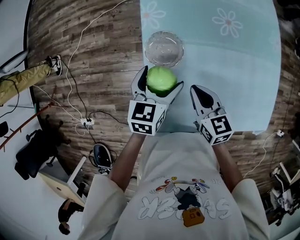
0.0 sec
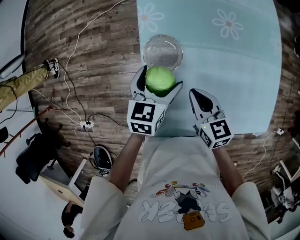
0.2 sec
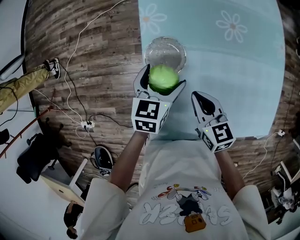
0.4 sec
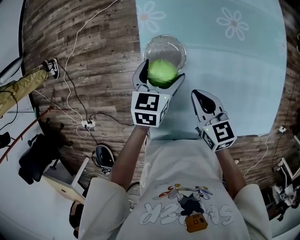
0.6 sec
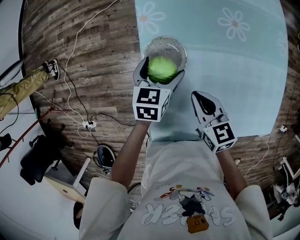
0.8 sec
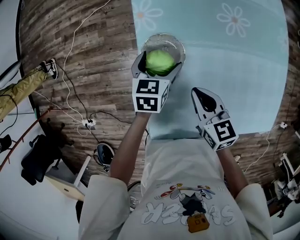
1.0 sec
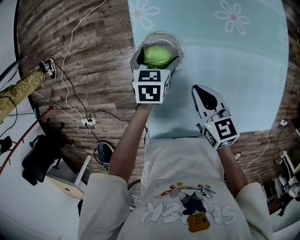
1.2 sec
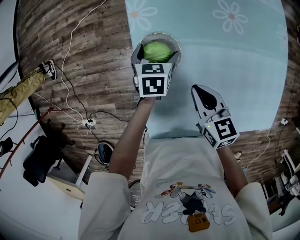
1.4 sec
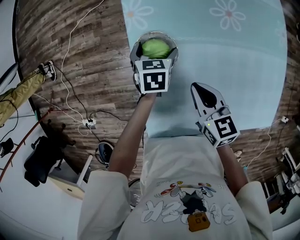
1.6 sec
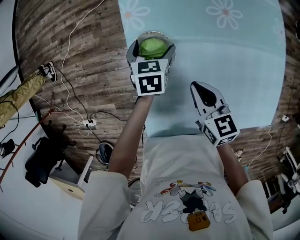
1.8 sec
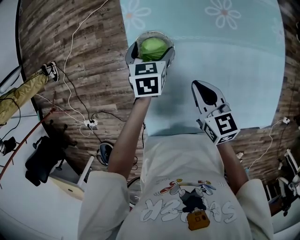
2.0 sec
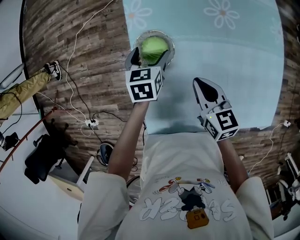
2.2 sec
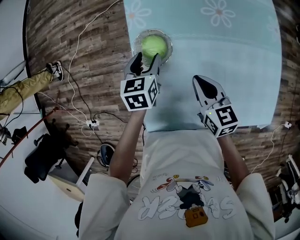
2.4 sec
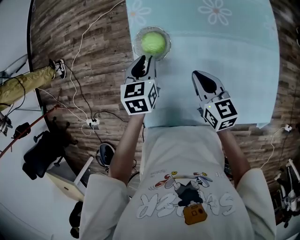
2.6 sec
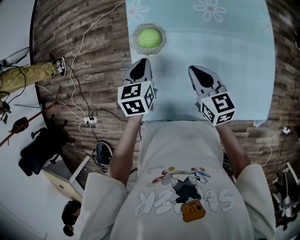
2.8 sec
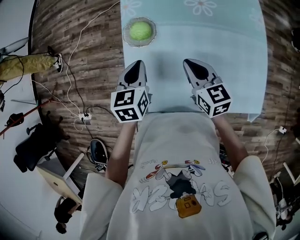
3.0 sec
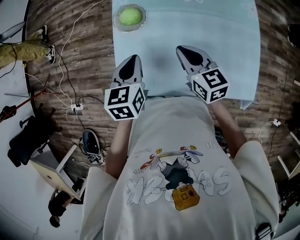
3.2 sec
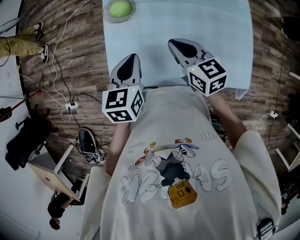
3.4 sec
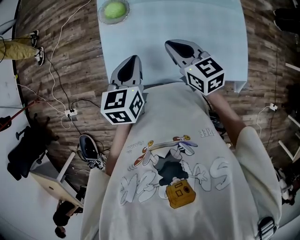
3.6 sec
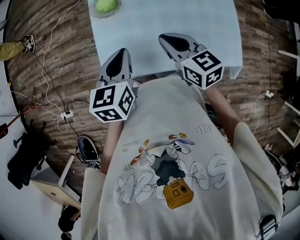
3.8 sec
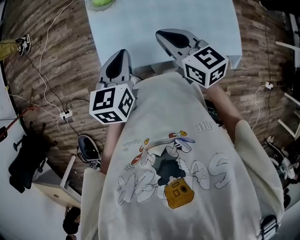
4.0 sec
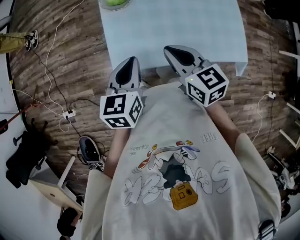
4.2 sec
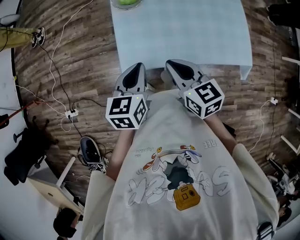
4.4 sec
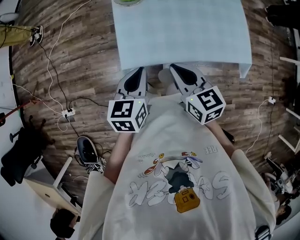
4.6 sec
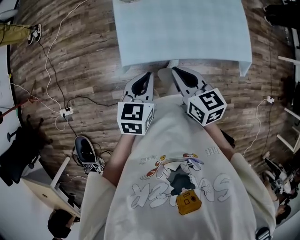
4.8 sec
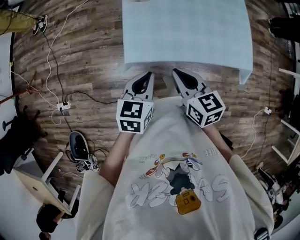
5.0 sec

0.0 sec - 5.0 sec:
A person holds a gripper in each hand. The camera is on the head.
0.0 sec - 1.6 sec: The left gripper shifts roughly 20 cm downward and forward, while the right gripper shifts by roughly 5 cm.
1.6 sec - 3.4 sec: The left gripper shifts approximately 35 cm backward and upward, rotates approximately 20 degrees, and closes its fingers; the right gripper is displaced backward, upward and to the right by some 20 cm.
3.4 sec - 5.0 sec: The left gripper goes about 20 cm backward. Meanwhile the right gripper heads backward and to the left, covering some 30 cm.

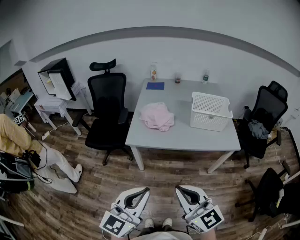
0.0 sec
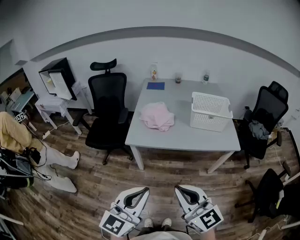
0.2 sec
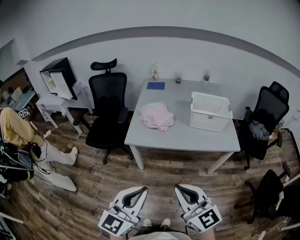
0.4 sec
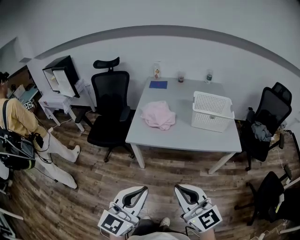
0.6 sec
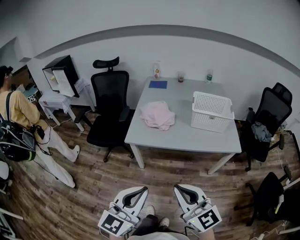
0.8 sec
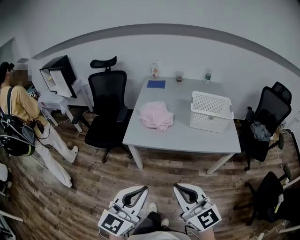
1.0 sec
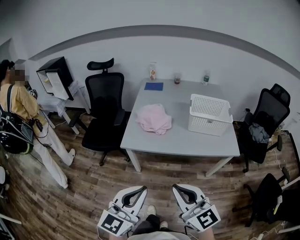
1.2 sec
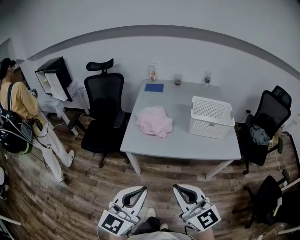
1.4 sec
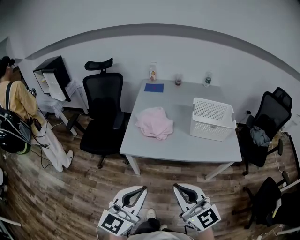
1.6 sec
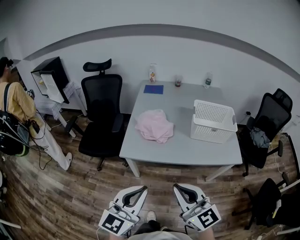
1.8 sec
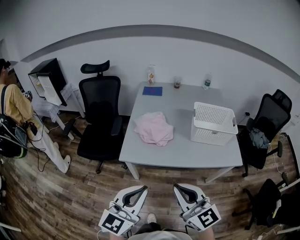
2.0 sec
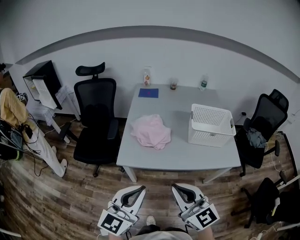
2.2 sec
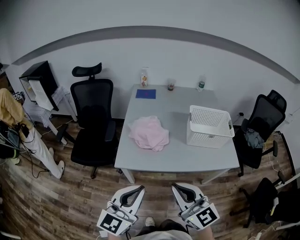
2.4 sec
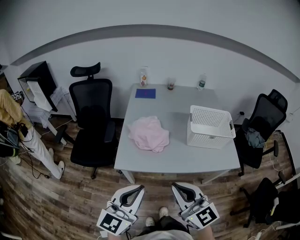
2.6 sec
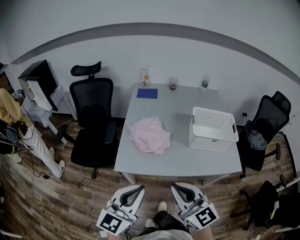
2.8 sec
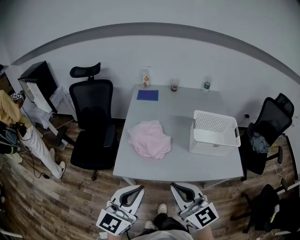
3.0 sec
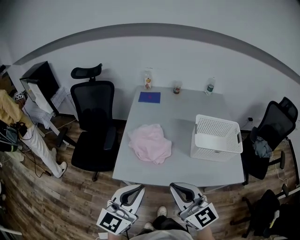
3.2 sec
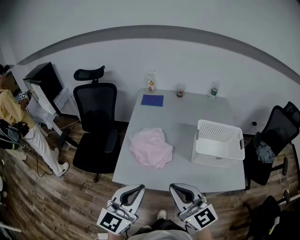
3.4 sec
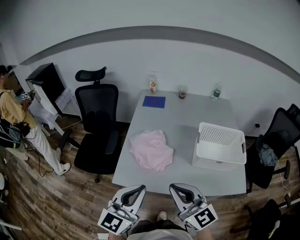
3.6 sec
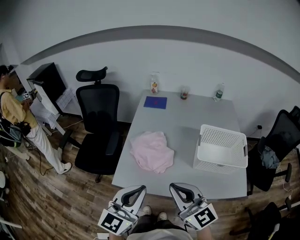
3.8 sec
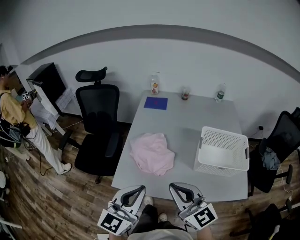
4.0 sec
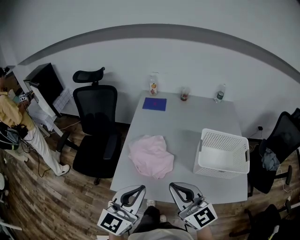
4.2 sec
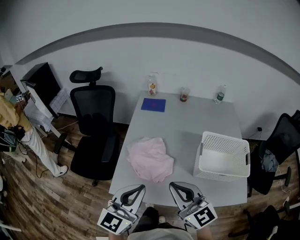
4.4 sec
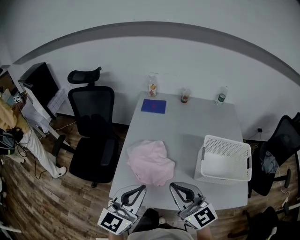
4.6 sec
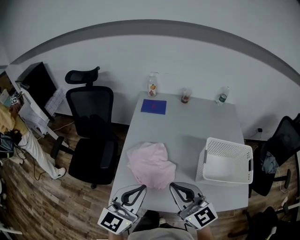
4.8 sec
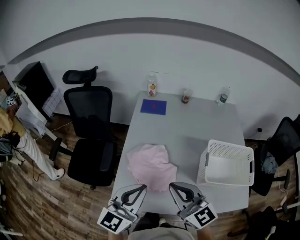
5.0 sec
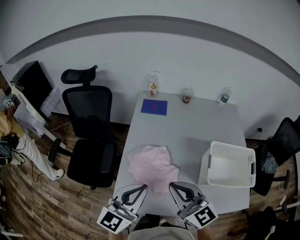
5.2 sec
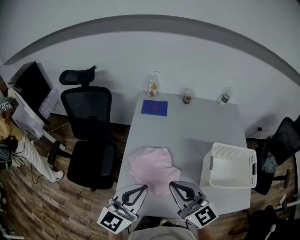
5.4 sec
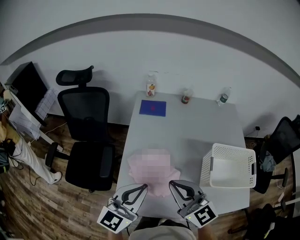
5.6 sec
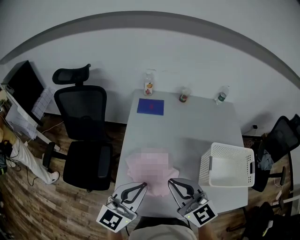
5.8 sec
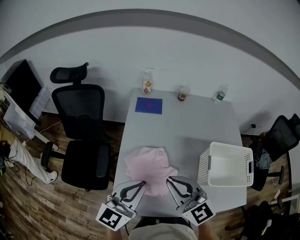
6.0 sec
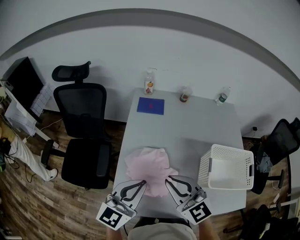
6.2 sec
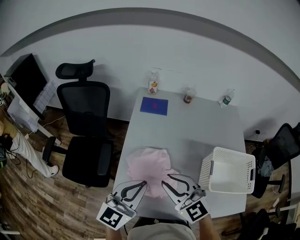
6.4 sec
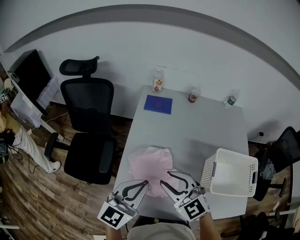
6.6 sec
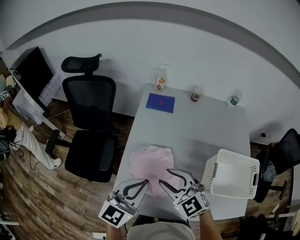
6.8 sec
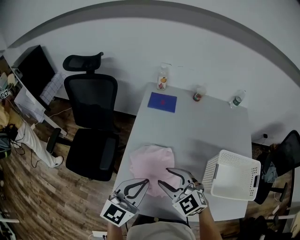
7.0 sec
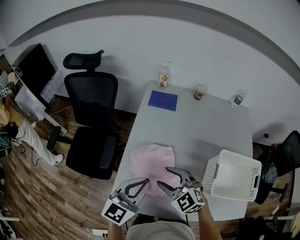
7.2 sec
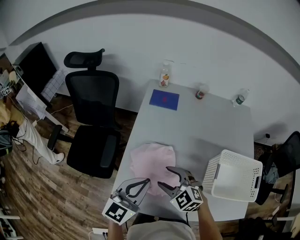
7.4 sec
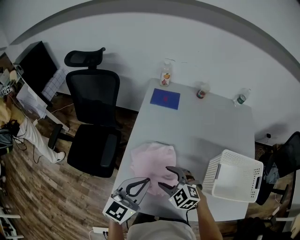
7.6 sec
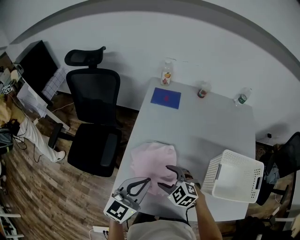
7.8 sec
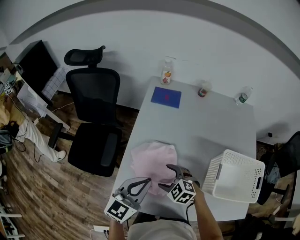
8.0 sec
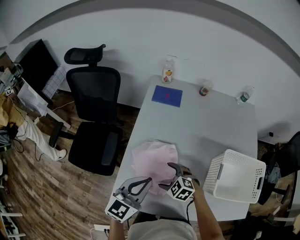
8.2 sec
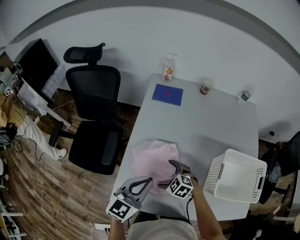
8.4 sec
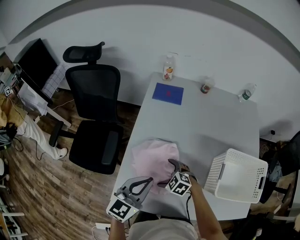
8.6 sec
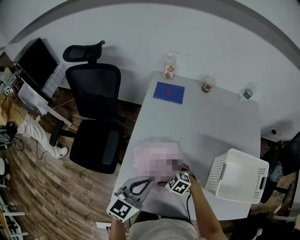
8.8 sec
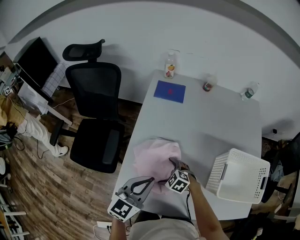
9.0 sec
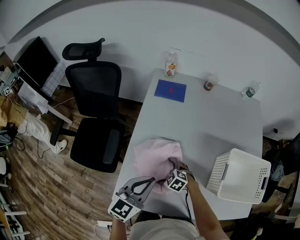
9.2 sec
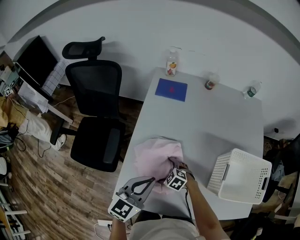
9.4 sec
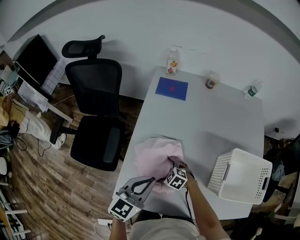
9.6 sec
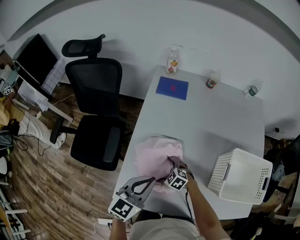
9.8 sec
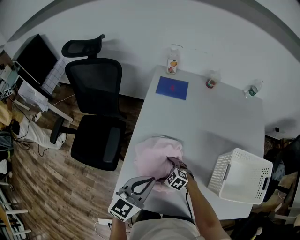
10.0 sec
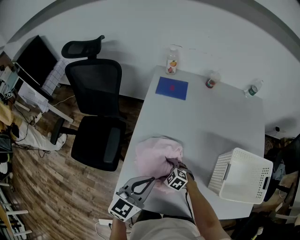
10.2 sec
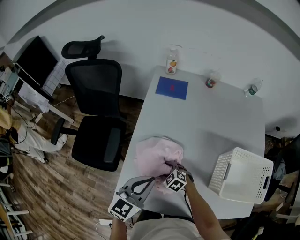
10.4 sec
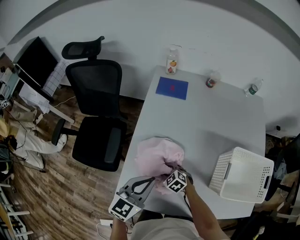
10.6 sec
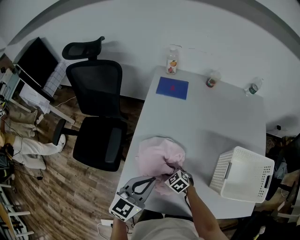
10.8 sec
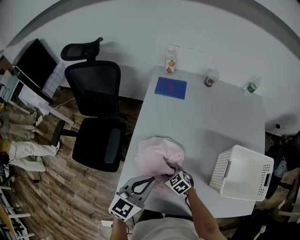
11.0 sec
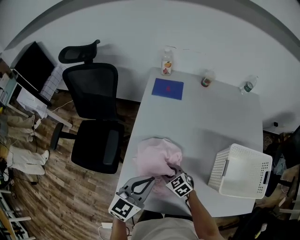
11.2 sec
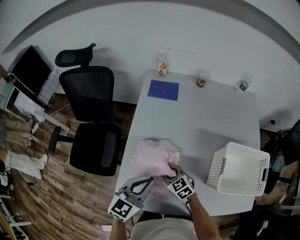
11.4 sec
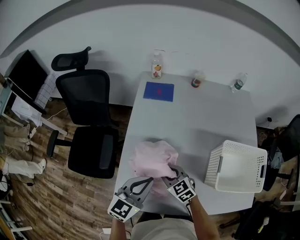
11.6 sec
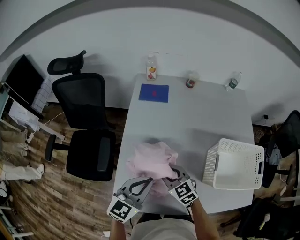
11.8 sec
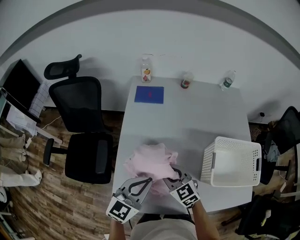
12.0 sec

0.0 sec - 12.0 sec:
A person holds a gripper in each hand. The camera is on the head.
0.0 sec - 1.6 sec: The two grippers go roughly 10 cm forward.
1.6 sec - 3.0 sec: The two grippers go some 20 cm forward.
3.0 sec - 4.4 sec: The grippers both shift forward by some 15 cm.
4.4 sec - 6.0 sec: The left gripper travels forward by approximately 15 cm. The right gripper moves forward and to the left, roughly 15 cm.
6.0 sec - 7.6 sec: The left gripper goes about 5 cm downward, while the right gripper heads downward, covering approximately 20 cm, tilts its fingers approximately 30 degrees downward, and opens its fingers.
7.6 sec - 9.0 sec: The right gripper is displaced downward by some 15 cm, turns by some 20 degrees, and opens its fingers.
9.0 sec - 10.4 sec: The right gripper closes.
10.4 sec - 12.0 sec: The left gripper shifts by some 5 cm. Meanwhile the right gripper is displaced upward by some 20 cm, and rotates about 40 degrees.

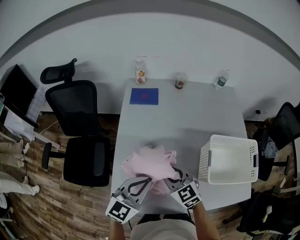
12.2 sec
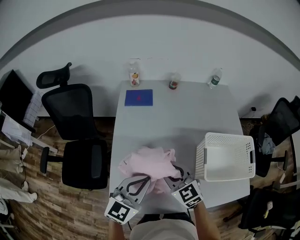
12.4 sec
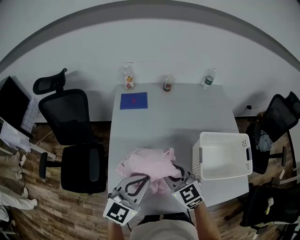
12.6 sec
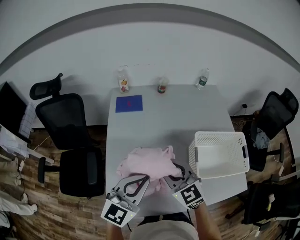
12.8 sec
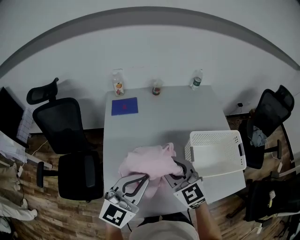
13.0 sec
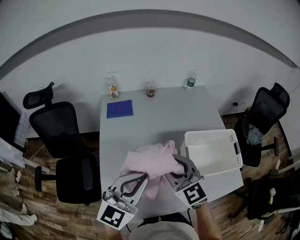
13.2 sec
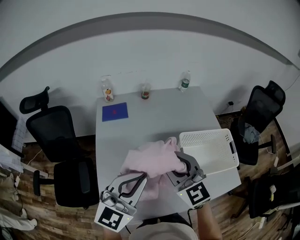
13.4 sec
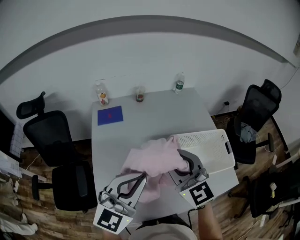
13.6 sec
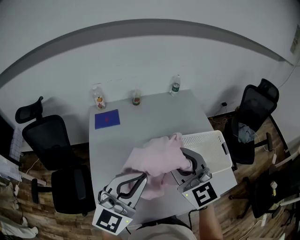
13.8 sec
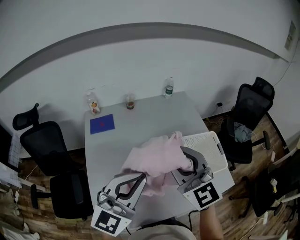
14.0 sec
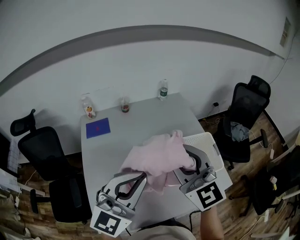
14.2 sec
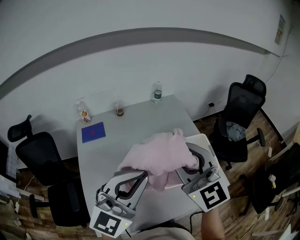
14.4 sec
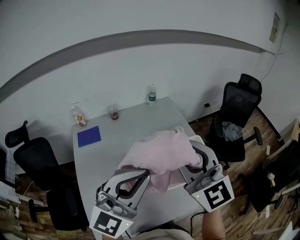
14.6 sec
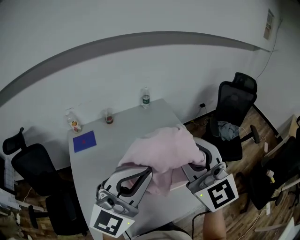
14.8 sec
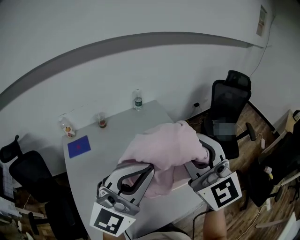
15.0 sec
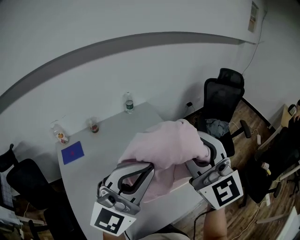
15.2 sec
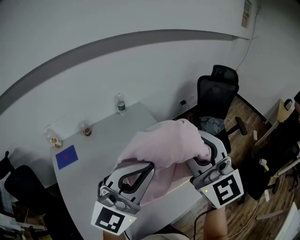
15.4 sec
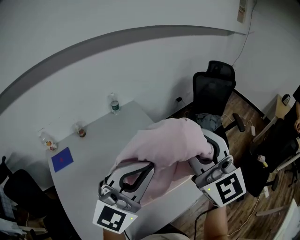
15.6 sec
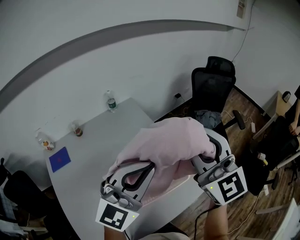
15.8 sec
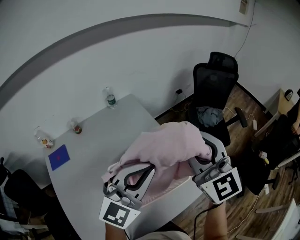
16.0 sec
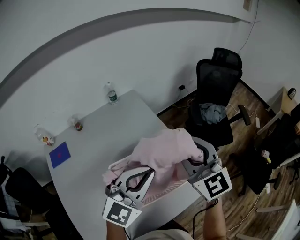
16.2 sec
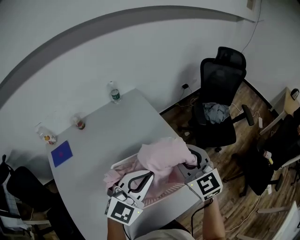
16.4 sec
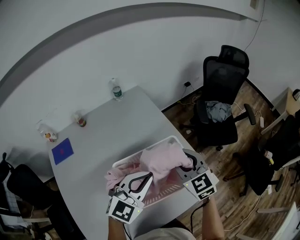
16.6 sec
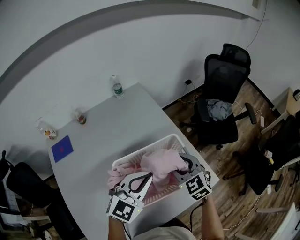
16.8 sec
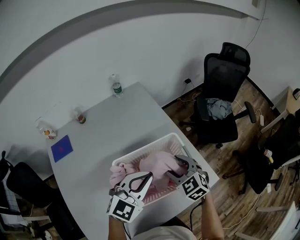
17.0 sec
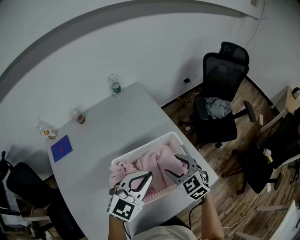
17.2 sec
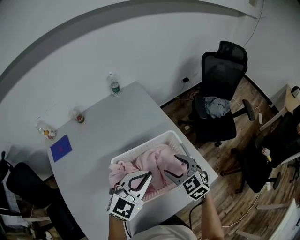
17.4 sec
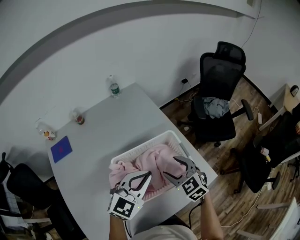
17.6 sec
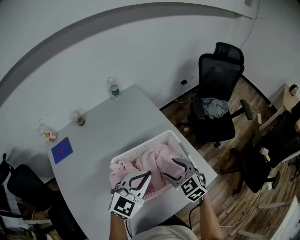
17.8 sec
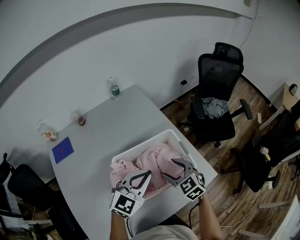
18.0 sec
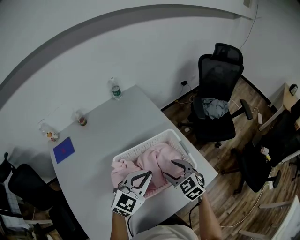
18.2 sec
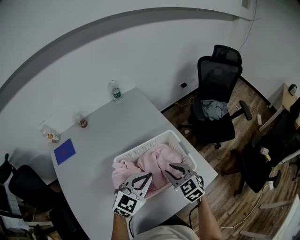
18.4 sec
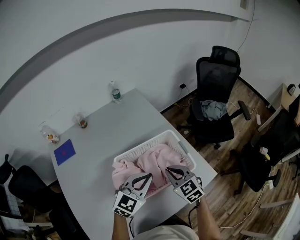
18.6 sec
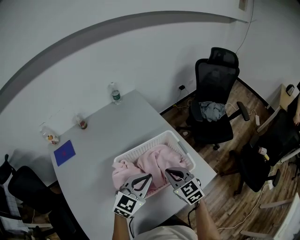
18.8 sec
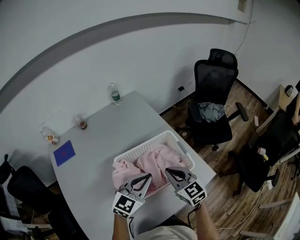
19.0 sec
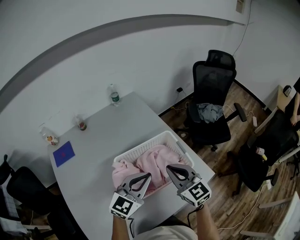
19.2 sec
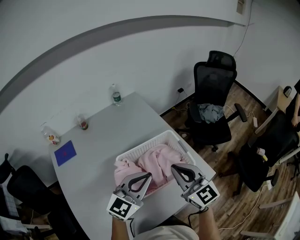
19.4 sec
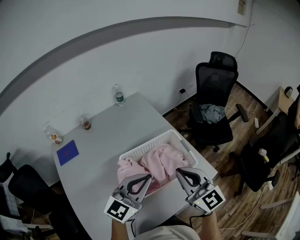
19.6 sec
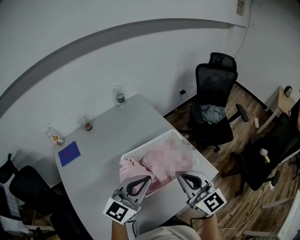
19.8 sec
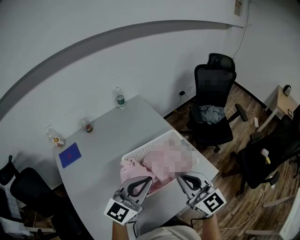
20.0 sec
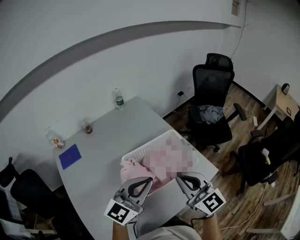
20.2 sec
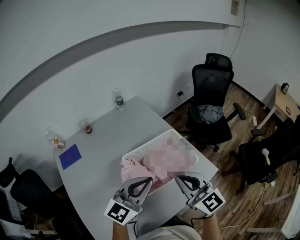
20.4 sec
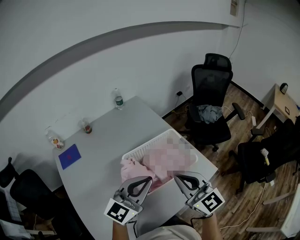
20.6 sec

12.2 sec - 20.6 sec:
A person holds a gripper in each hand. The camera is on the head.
12.2 sec - 13.6 sec: Both grippers travel together upward and to the right, about 20 cm. The left gripper changes its angle by approximately 30 degrees. The right gripper swivels some 30 degrees.
13.6 sec - 15.0 sec: The left gripper moves to the right, upward and forward, some 25 cm, and swivels about 30 degrees; the right gripper is displaced to the right and upward by approximately 25 cm, and rotates about 20 degrees.
15.0 sec - 16.4 sec: Both grippers move downward, forward and to the right, some 25 cm. The left gripper turns by about 30 degrees. Meanwhile the right gripper turns by approximately 20 degrees.
16.4 sec - 17.8 sec: The right gripper moves downward and backward, roughly 15 cm, and turns by about 20 degrees. Meanwhile the left gripper moves downward, roughly 5 cm.
17.8 sec - 19.2 sec: The right gripper is displaced upward by roughly 10 cm, swivels some 20 degrees, and closes up.
19.2 sec - 20.6 sec: The grippers both shift backward and upward by approximately 10 cm.
